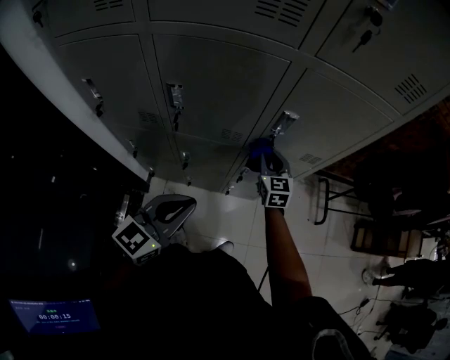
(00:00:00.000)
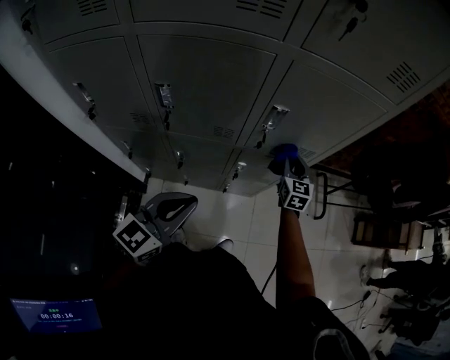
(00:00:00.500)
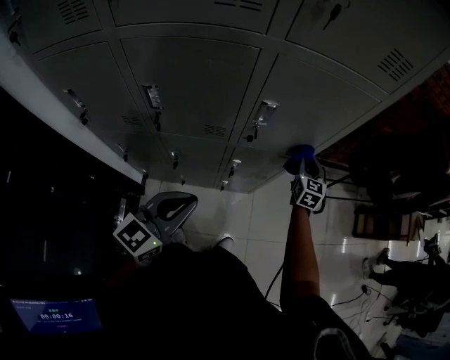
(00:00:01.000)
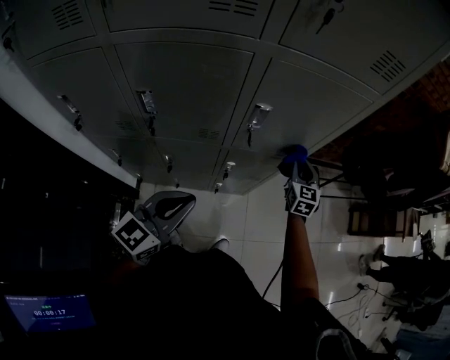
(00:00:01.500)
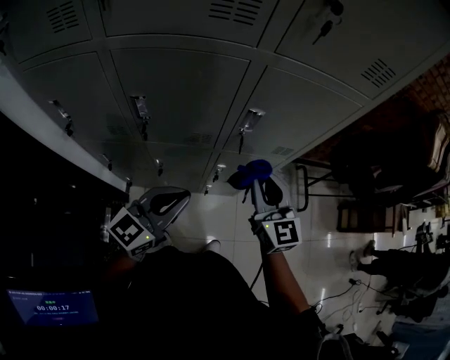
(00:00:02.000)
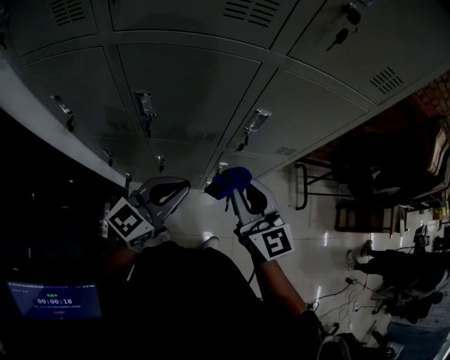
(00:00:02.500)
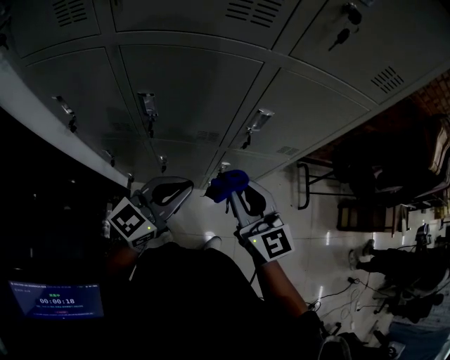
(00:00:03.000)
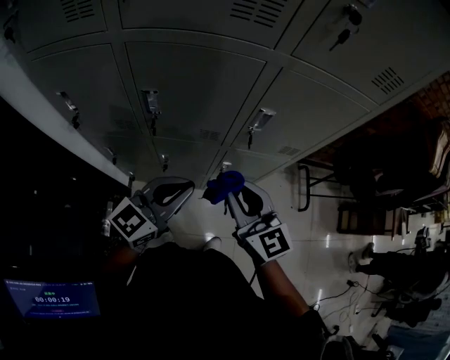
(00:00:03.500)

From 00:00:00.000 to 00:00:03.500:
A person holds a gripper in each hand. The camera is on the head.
From 00:00:00.000 to 00:00:02.000: The right gripper heads upward and backward, covering roughly 20 cm, and goes to the right and returns, approximately 20 cm each way, while the left gripper moves forward, about 5 cm.
From 00:00:02.000 to 00:00:03.500: The right gripper heads to the left and backward, covering approximately 10 cm.

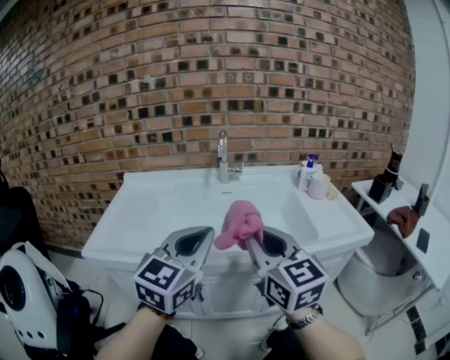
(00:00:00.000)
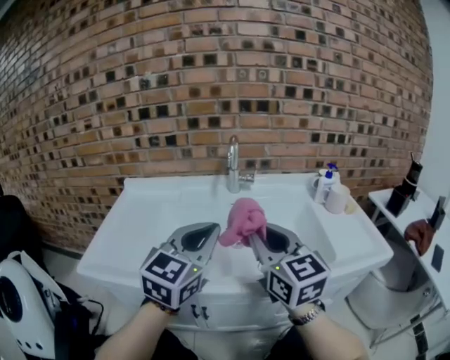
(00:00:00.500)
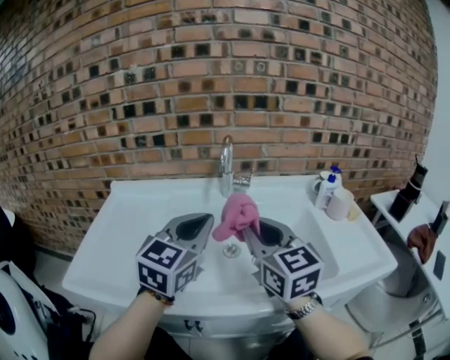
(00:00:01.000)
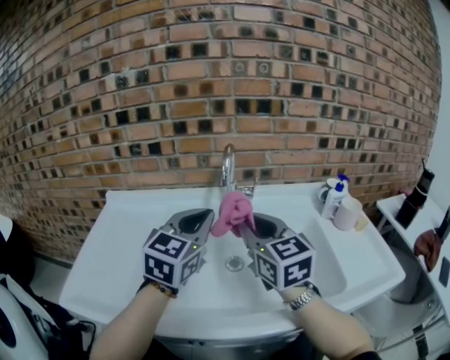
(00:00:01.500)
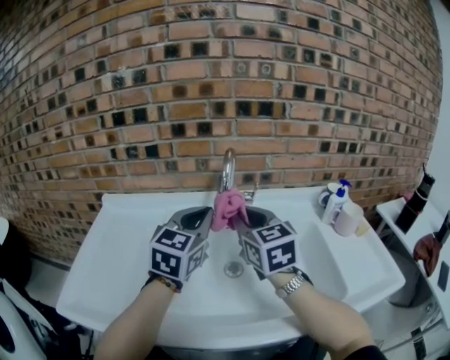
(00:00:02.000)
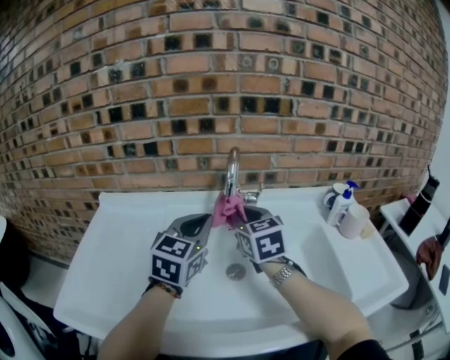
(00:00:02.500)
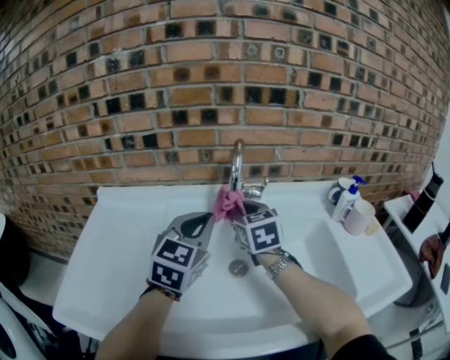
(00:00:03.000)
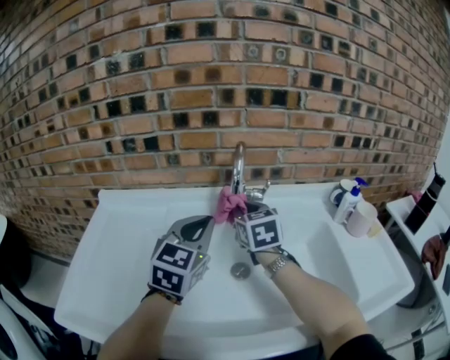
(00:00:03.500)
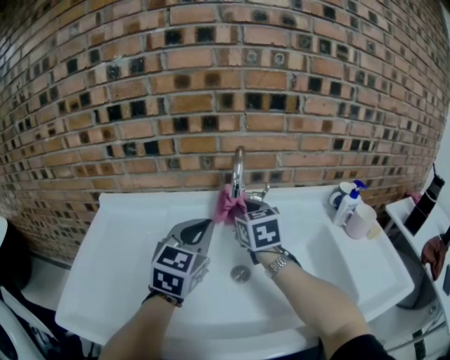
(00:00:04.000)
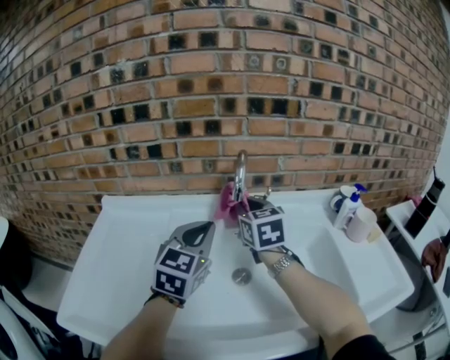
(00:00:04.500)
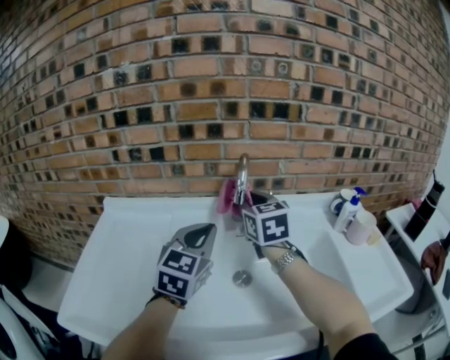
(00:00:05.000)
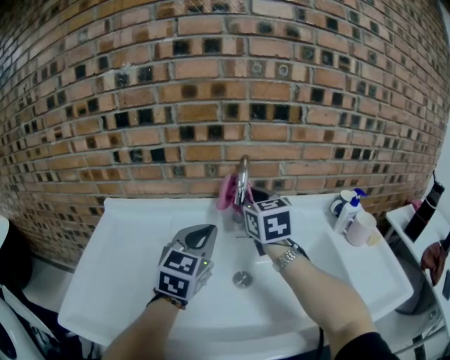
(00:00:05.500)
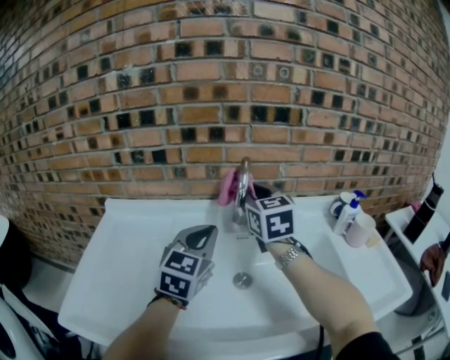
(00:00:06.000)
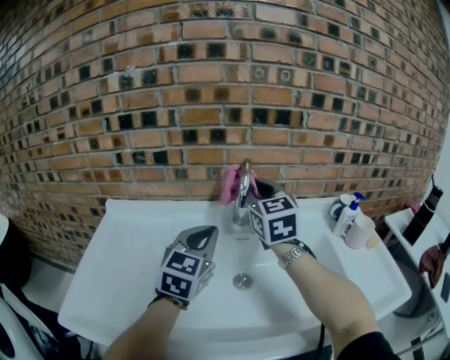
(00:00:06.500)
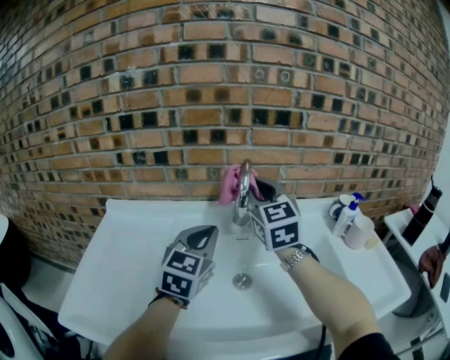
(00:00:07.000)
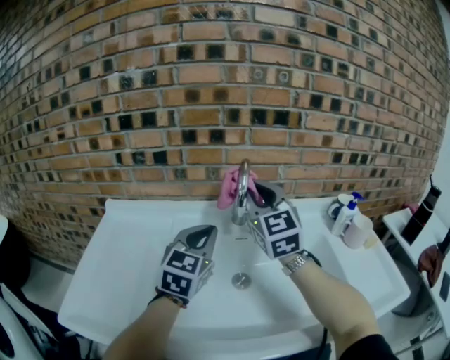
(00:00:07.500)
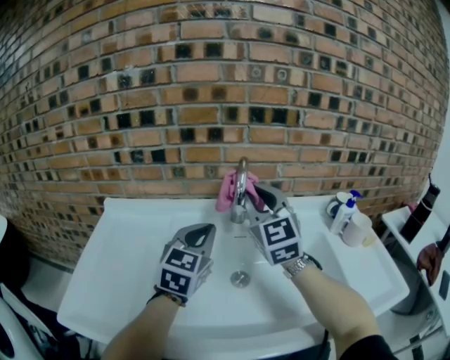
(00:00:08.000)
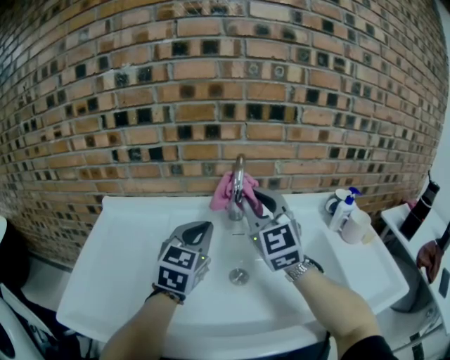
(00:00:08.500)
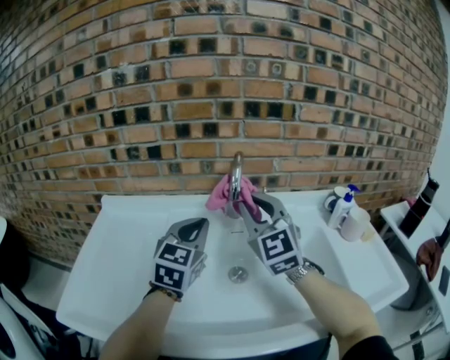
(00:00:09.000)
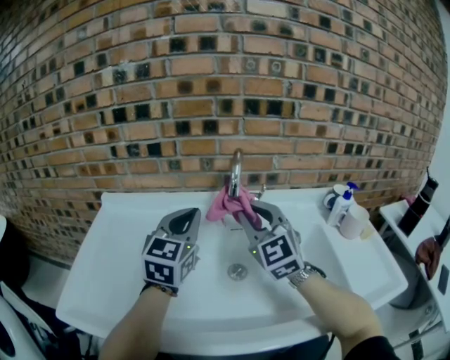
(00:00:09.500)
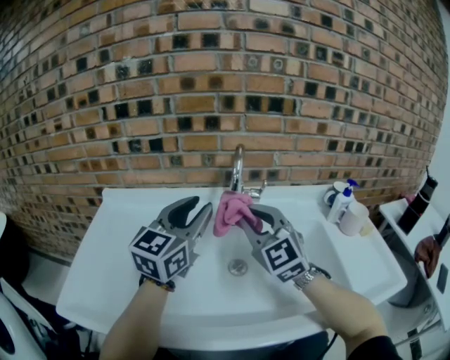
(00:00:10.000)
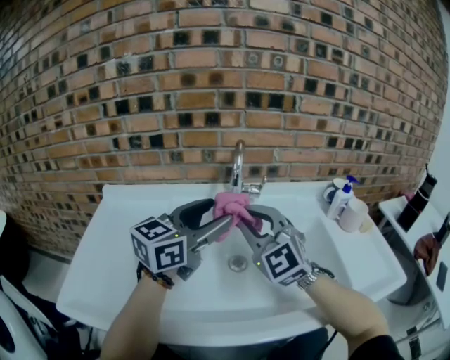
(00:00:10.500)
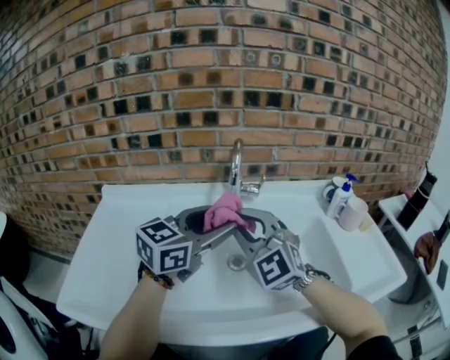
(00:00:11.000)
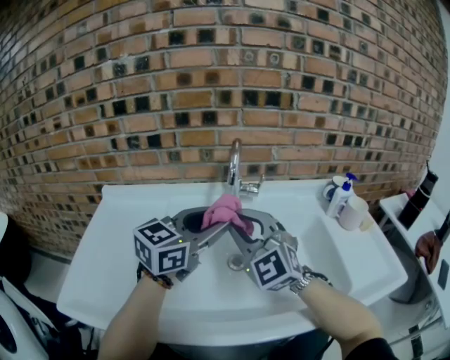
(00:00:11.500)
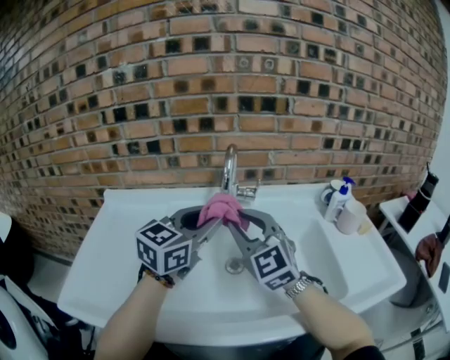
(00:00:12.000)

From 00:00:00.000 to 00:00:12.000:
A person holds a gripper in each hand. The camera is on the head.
From 00:00:00.000 to 00:00:02.000: The two grippers go some 30 cm forward.
From 00:00:02.000 to 00:00:04.000: The right gripper heads forward and downward, covering approximately 10 cm.
From 00:00:04.000 to 00:00:06.000: The right gripper heads upward, covering about 10 cm.
From 00:00:06.000 to 00:00:08.000: The right gripper goes some 5 cm backward, and rotates roughly 20 degrees.
From 00:00:08.000 to 00:00:10.000: The left gripper heads upward, covering approximately 5 cm, and opens its fingers, while the right gripper moves downward and backward, approximately 10 cm.
From 00:00:10.000 to 00:00:12.000: The left gripper is displaced to the right by some 5 cm, and opens, then closes again.

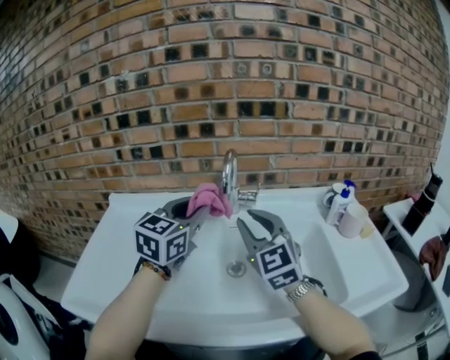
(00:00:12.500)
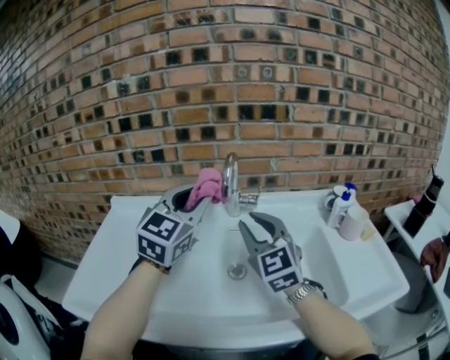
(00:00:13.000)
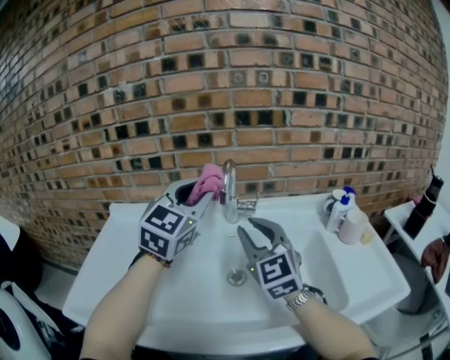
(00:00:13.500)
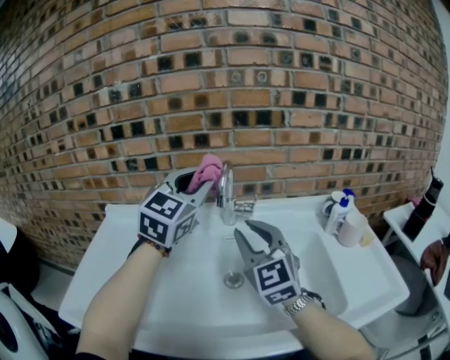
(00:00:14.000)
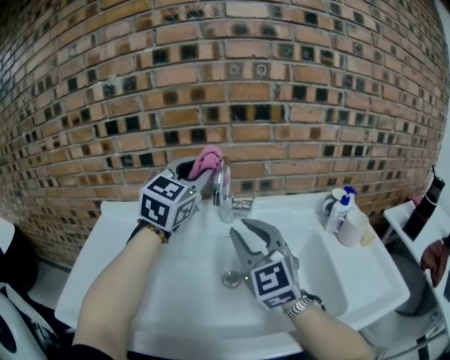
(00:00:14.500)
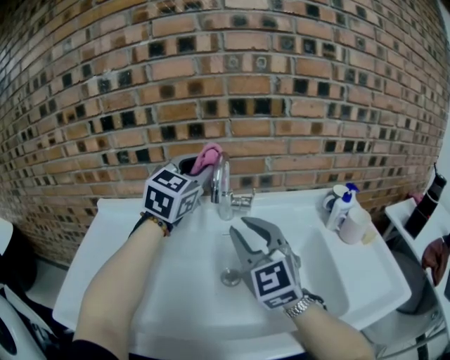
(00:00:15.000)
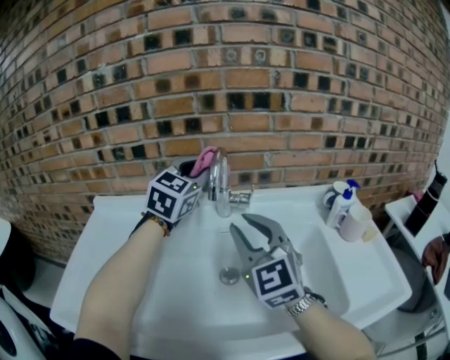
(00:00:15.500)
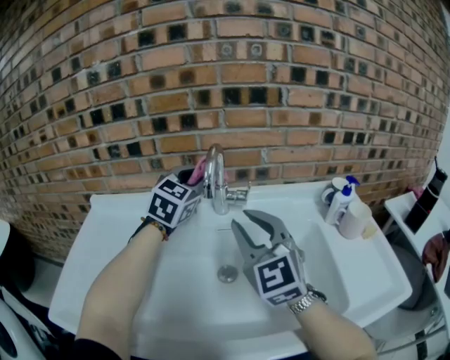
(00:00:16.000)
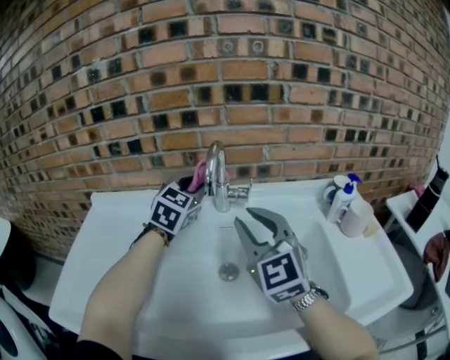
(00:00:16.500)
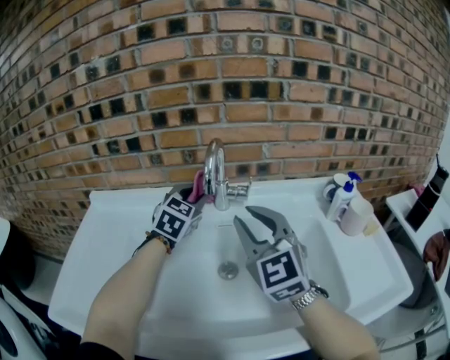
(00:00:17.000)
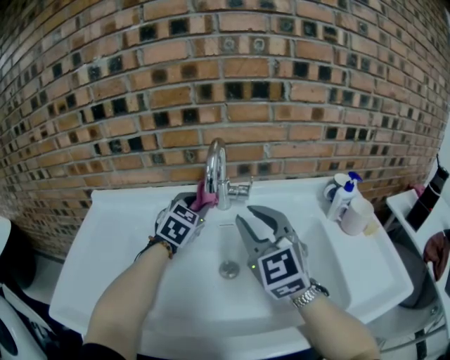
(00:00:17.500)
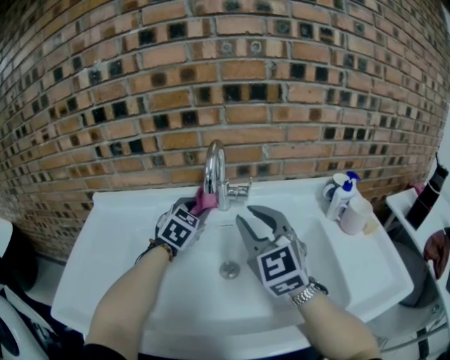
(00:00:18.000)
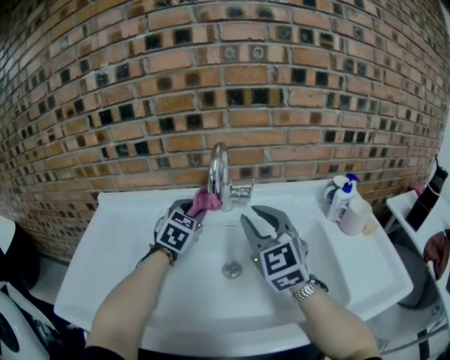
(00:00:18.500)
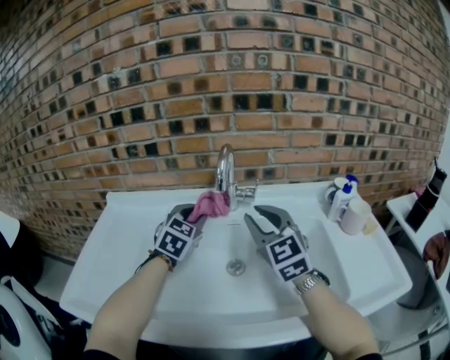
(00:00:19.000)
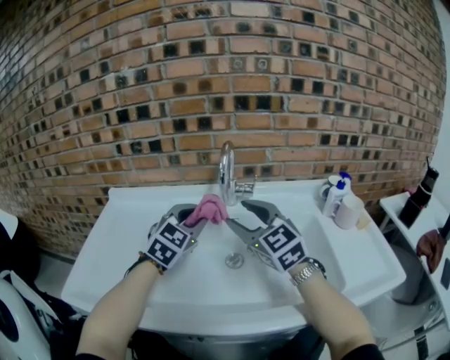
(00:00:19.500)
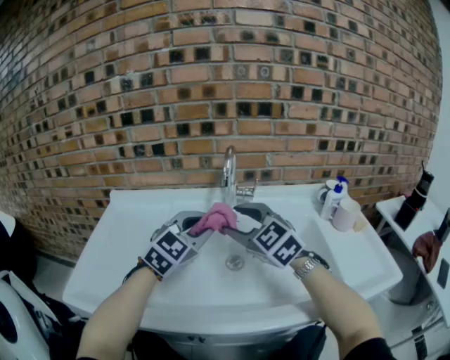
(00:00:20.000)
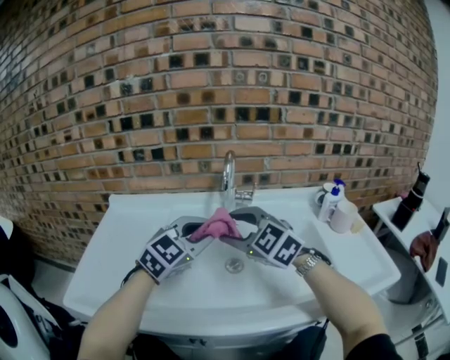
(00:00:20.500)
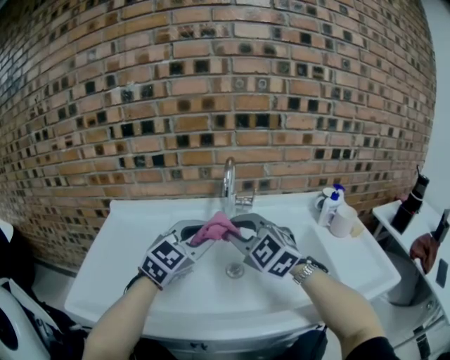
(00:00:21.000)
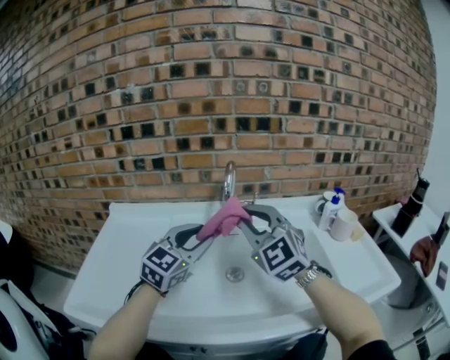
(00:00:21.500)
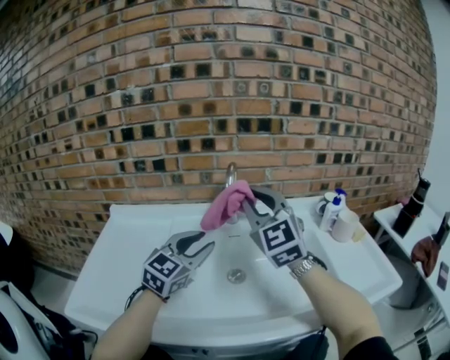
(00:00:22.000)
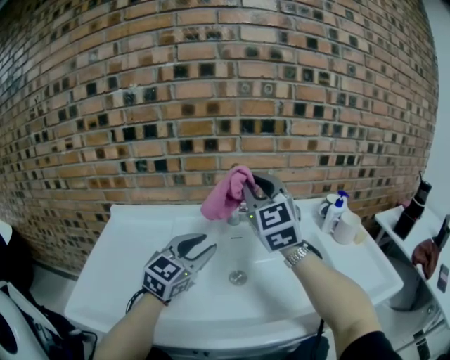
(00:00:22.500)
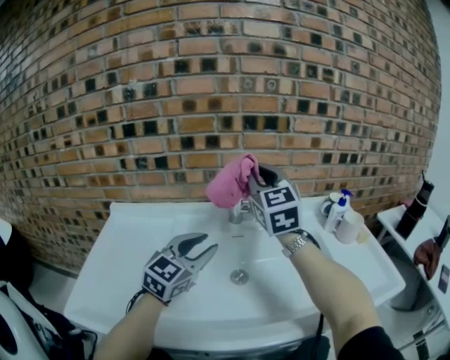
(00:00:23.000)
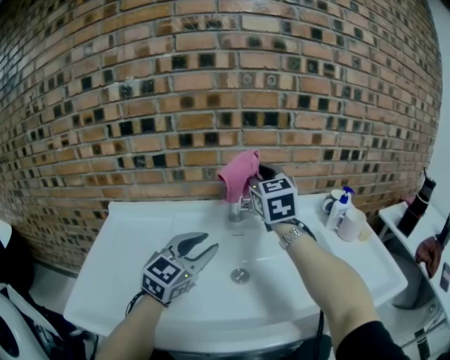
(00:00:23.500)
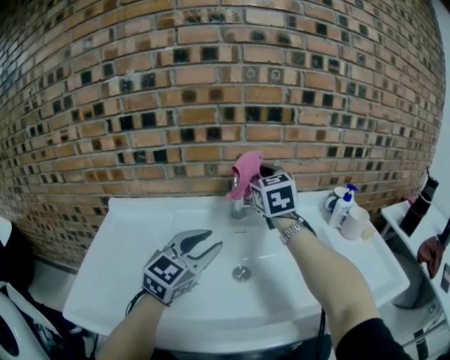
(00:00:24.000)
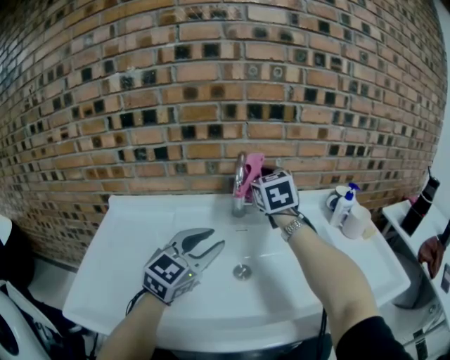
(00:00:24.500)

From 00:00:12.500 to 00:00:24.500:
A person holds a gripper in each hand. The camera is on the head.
From 00:00:12.500 to 00:00:14.500: The left gripper shifts approximately 10 cm upward and forward.
From 00:00:14.500 to 00:00:16.500: The left gripper moves downward and forward, some 15 cm.
From 00:00:16.500 to 00:00:18.500: The left gripper shifts approximately 10 cm downward.
From 00:00:18.500 to 00:00:20.500: The right gripper travels to the left and backward by about 10 cm, swivels roughly 30 degrees, and opens its fingers; the left gripper goes about 20 cm backward, and turns by about 30 degrees.
From 00:00:20.500 to 00:00:22.500: The right gripper is displaced upward and forward by some 15 cm, tilts its fingers approximately 30 degrees upward, and closes.
From 00:00:22.500 to 00:00:24.500: The right gripper is displaced forward and downward by approximately 15 cm, and changes its angle by roughly 20 degrees.
